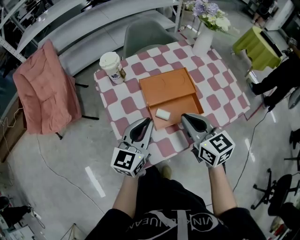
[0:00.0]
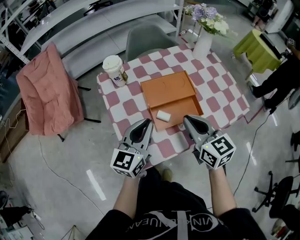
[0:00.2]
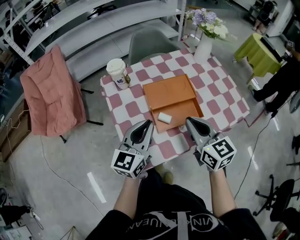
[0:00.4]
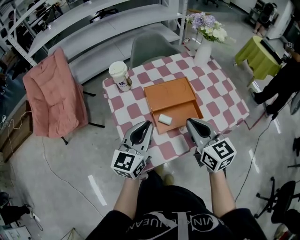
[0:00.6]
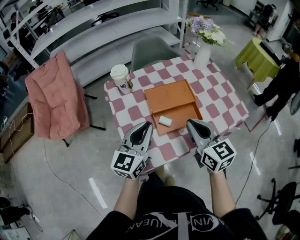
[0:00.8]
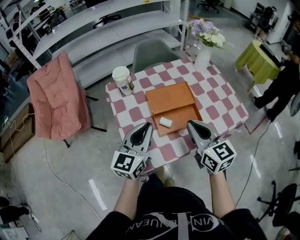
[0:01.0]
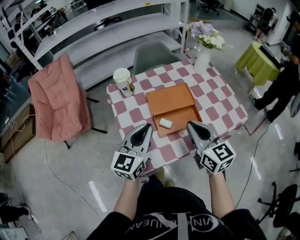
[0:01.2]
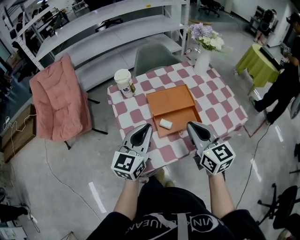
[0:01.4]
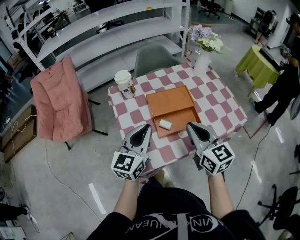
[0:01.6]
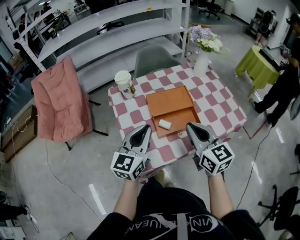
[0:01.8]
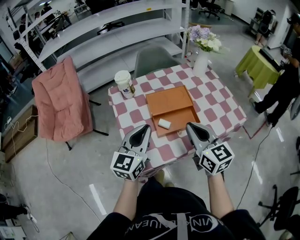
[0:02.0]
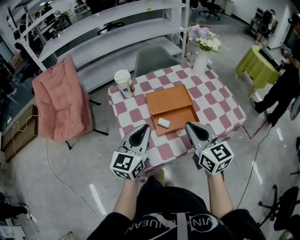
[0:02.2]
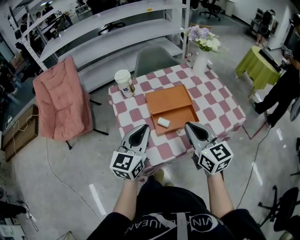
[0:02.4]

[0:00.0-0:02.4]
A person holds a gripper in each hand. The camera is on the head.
0:00.0 to 0:01.2: Both grippers move upward, some 5 cm.
0:01.2 to 0:02.4: The grippers move only a little.

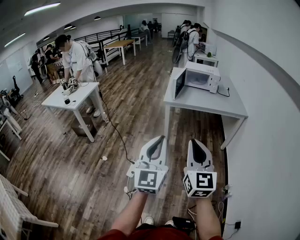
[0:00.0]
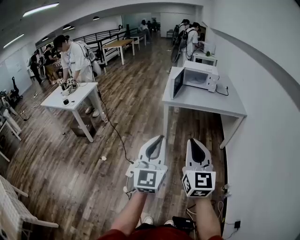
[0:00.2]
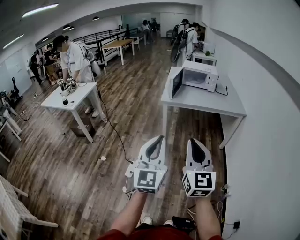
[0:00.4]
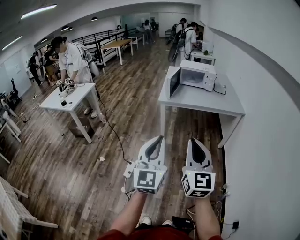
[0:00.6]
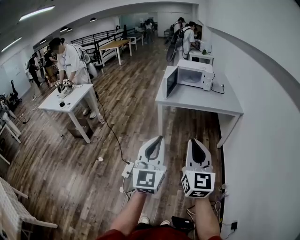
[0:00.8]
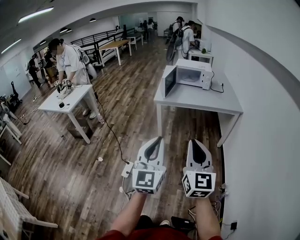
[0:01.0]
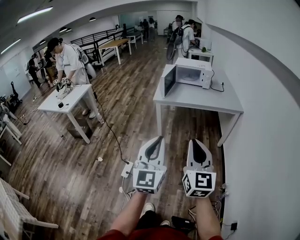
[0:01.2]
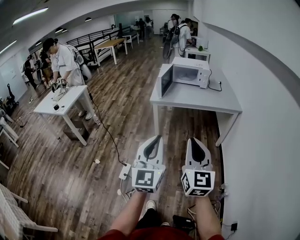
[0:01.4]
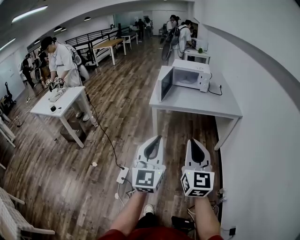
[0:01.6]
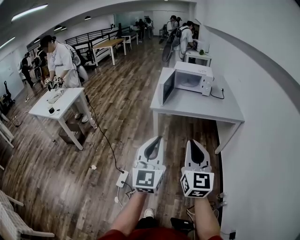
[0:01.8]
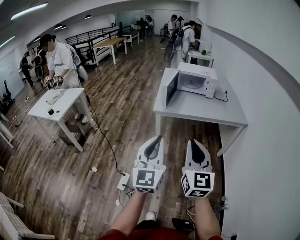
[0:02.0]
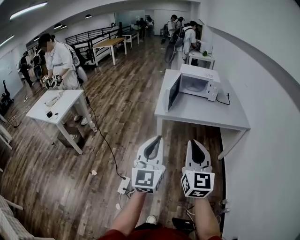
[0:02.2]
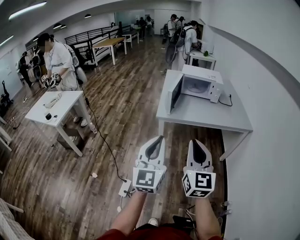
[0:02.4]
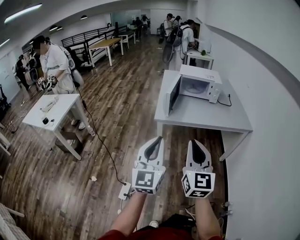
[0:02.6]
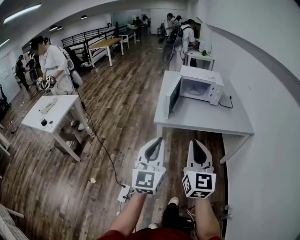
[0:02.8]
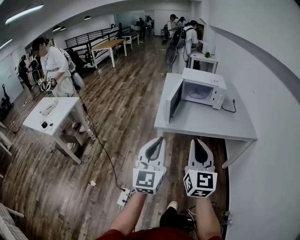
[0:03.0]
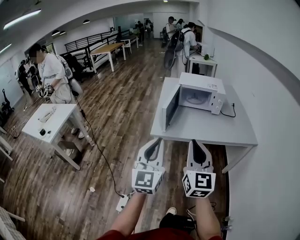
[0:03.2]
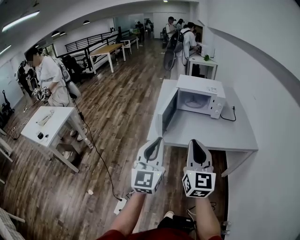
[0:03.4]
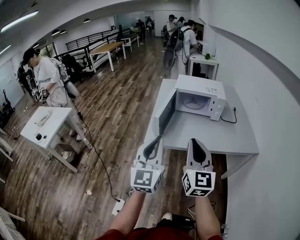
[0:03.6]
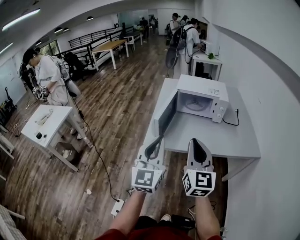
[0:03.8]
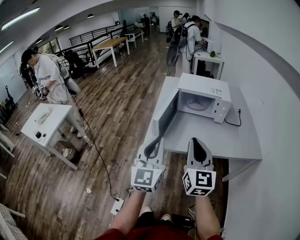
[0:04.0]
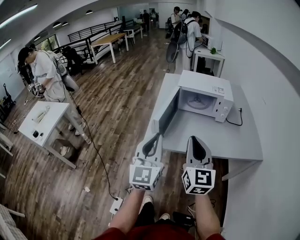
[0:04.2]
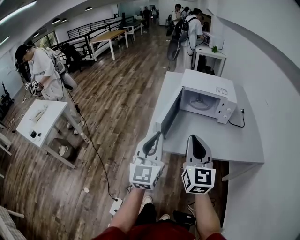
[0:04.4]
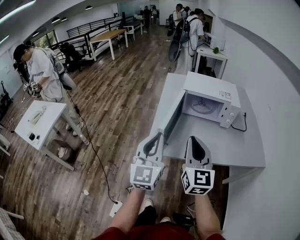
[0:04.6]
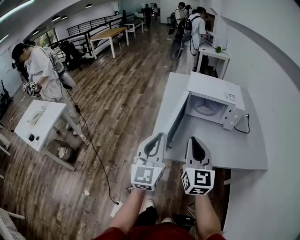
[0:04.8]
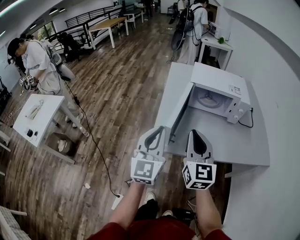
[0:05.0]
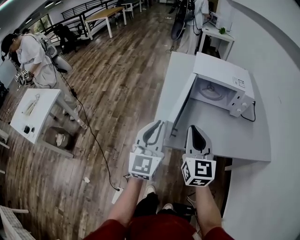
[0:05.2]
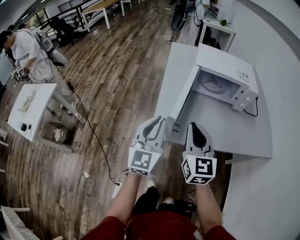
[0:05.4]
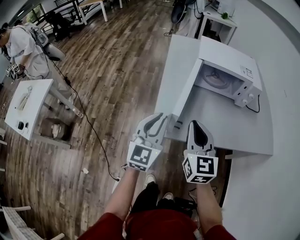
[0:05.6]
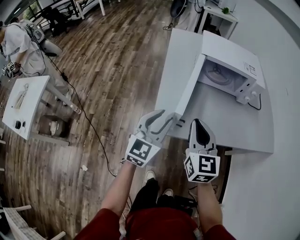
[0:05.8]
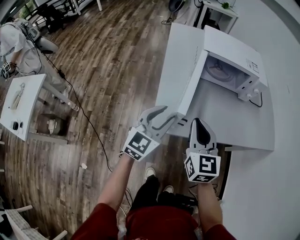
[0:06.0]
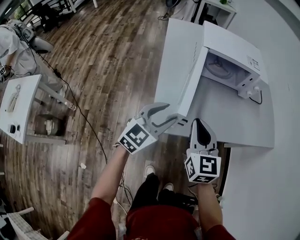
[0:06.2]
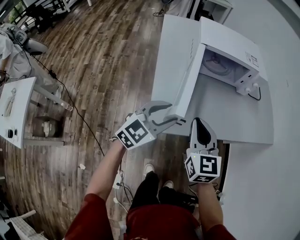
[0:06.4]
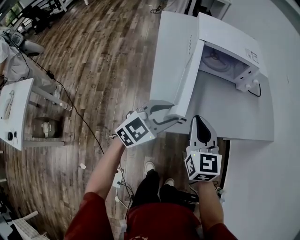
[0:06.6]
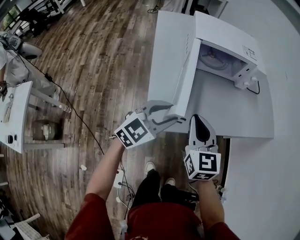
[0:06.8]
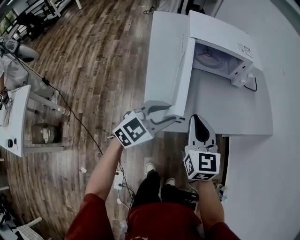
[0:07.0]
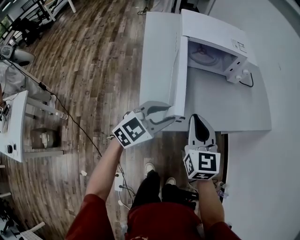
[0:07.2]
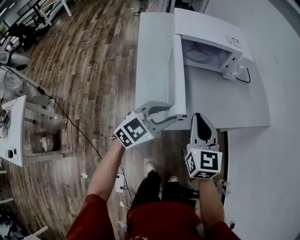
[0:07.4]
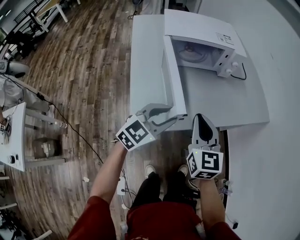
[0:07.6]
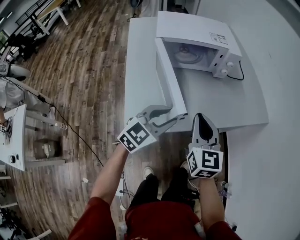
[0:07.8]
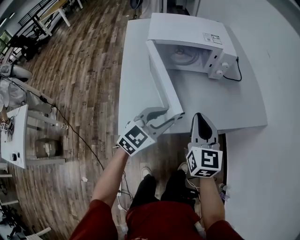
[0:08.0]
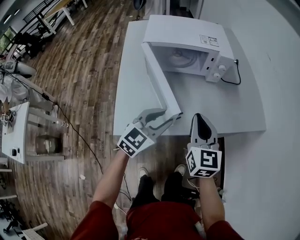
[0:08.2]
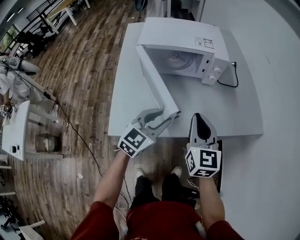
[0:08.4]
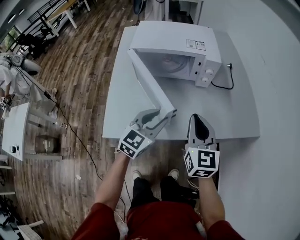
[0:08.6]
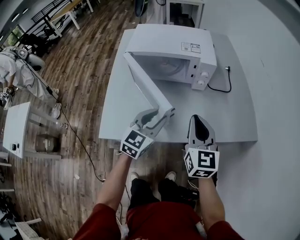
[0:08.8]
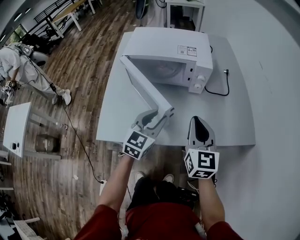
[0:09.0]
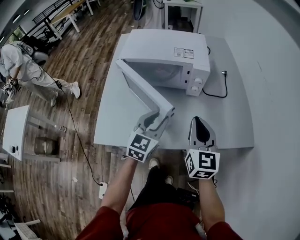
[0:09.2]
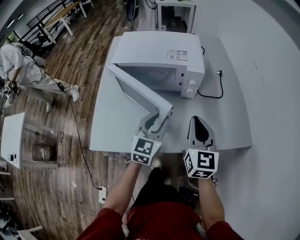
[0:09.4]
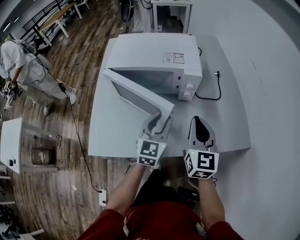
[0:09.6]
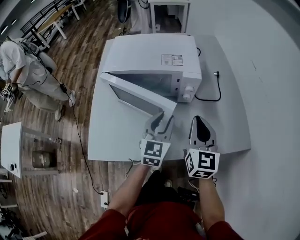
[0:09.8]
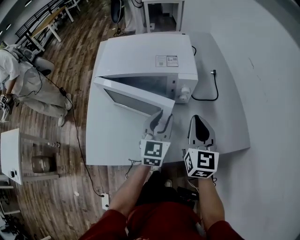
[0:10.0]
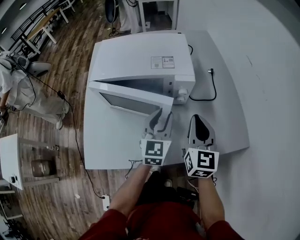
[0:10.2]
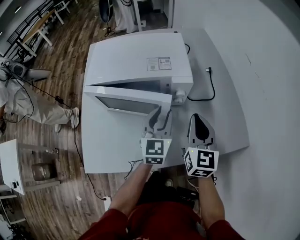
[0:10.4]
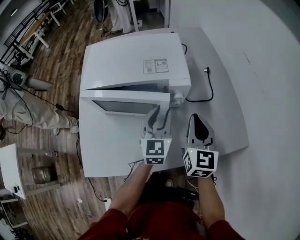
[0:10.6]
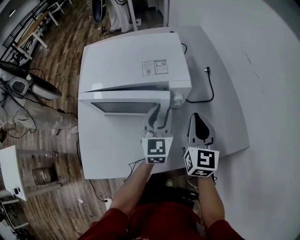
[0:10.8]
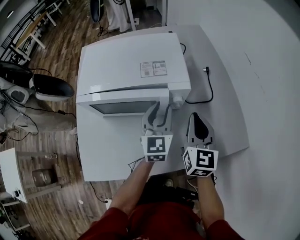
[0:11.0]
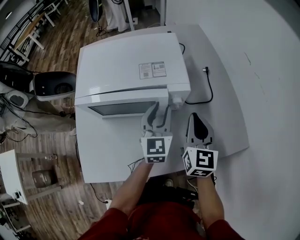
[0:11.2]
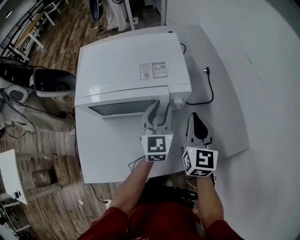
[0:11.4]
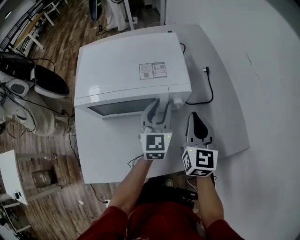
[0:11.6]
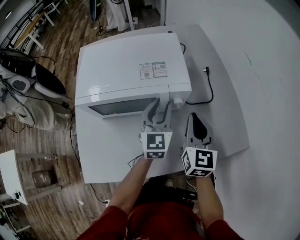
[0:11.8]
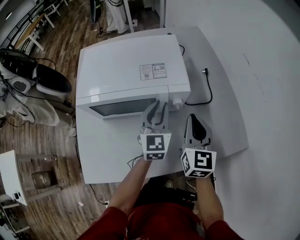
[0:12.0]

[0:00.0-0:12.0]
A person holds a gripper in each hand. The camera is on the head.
0:00.0 to 0:01.6: Both grippers move forward and to the right, roughly 15 cm.
0:01.6 to 0:03.0: Both grippers move forward, approximately 30 cm.
0:03.0 to 0:04.4: Both grippers travel together forward, roughly 30 cm.
0:04.4 to 0:06.0: The right gripper heads downward, forward and to the left, covering roughly 20 cm. Meanwhile the left gripper goes approximately 25 cm downward and forward, turns by about 30 degrees, and opens its fingers.
0:06.0 to 0:07.6: Both grippers move to the right, about 10 cm. The left gripper changes its angle by about 30 degrees.
0:07.6 to 0:09.0: Both grippers travel together to the right and forward, roughly 20 cm. The left gripper turns by roughly 30 degrees.
0:09.0 to 0:10.4: Both grippers move forward and to the right, approximately 15 cm.
0:10.4 to 0:12.0: The left gripper heads forward, covering about 5 cm.

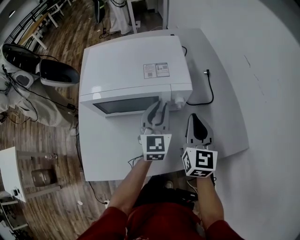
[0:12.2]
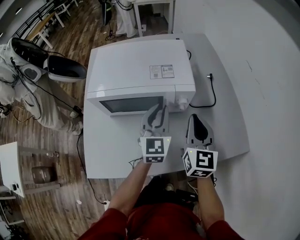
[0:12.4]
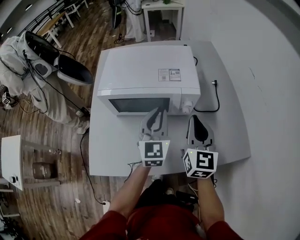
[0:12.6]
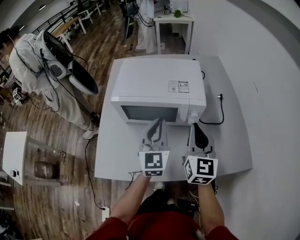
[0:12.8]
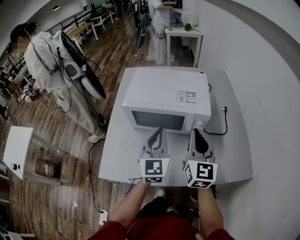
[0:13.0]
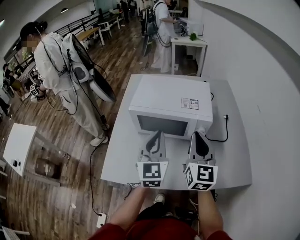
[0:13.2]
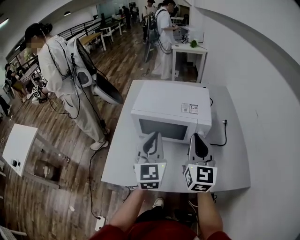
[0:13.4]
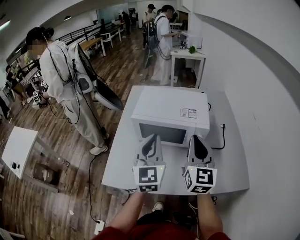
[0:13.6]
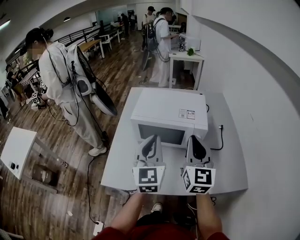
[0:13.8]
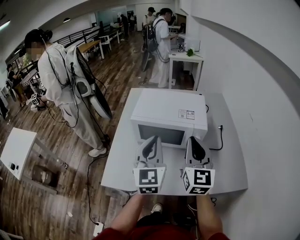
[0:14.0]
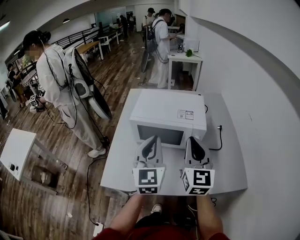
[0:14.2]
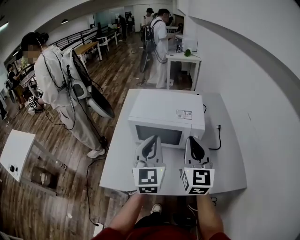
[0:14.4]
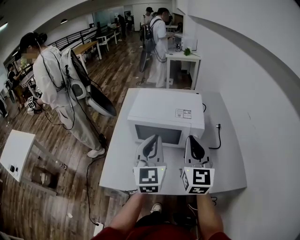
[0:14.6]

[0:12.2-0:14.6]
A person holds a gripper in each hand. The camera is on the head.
0:12.2 to 0:13.4: Both grippers move upward, to the left and backward, about 20 cm. The left gripper turns by roughly 20 degrees, while the right gripper turns by roughly 20 degrees.
0:13.4 to 0:14.6: The grippers move only a little.

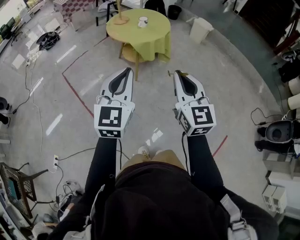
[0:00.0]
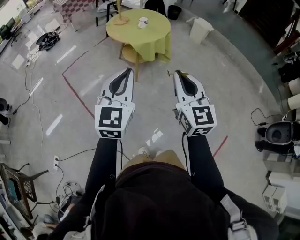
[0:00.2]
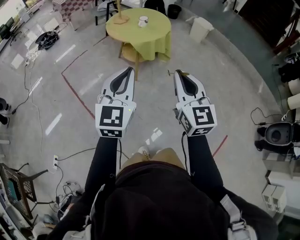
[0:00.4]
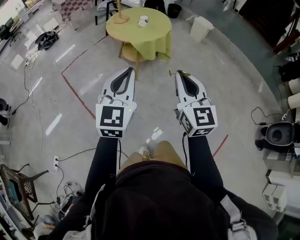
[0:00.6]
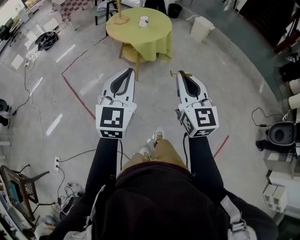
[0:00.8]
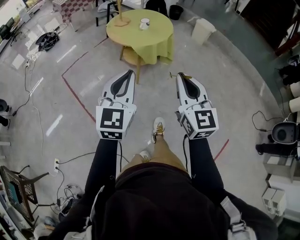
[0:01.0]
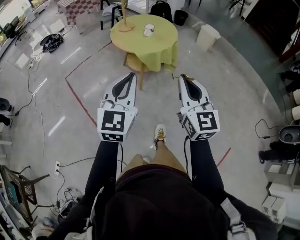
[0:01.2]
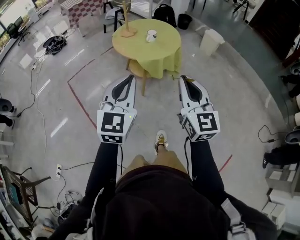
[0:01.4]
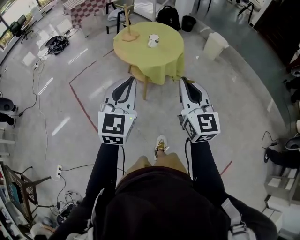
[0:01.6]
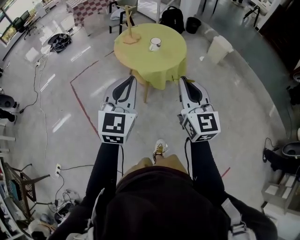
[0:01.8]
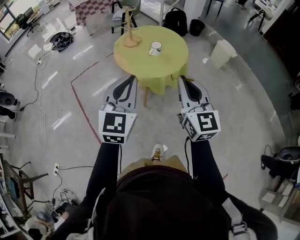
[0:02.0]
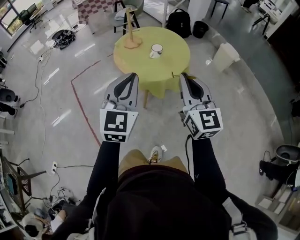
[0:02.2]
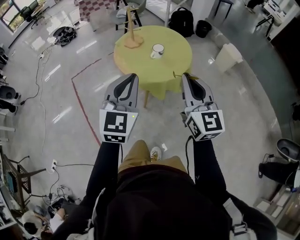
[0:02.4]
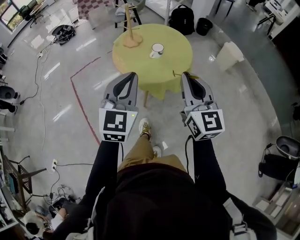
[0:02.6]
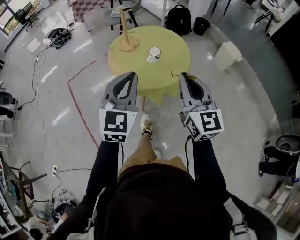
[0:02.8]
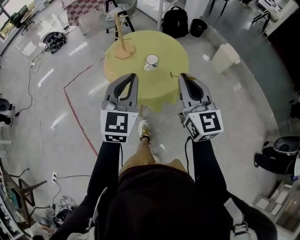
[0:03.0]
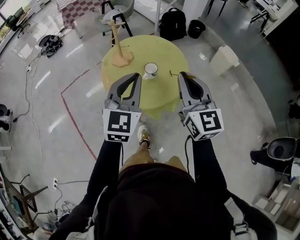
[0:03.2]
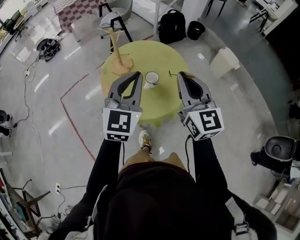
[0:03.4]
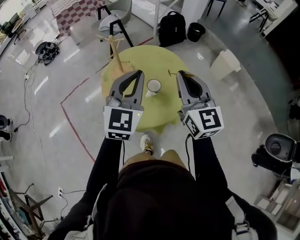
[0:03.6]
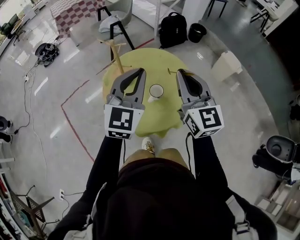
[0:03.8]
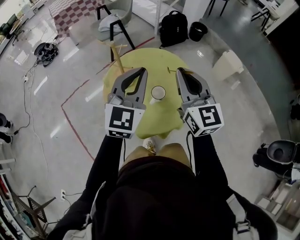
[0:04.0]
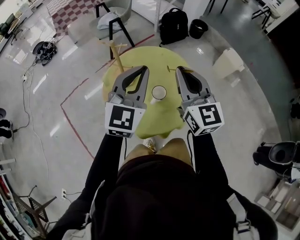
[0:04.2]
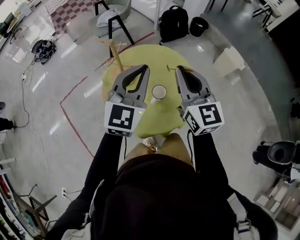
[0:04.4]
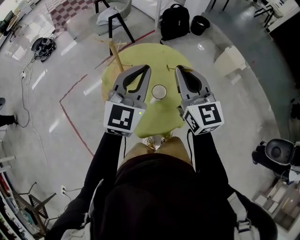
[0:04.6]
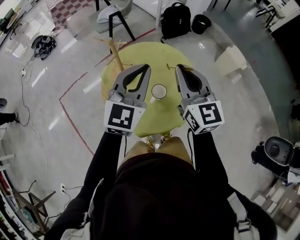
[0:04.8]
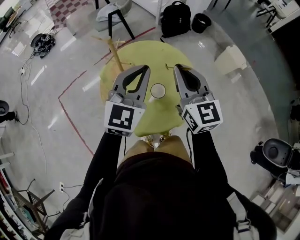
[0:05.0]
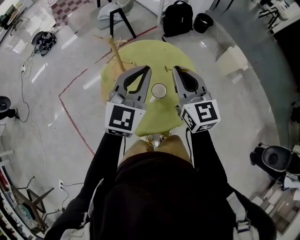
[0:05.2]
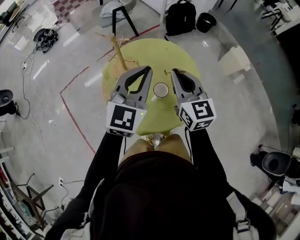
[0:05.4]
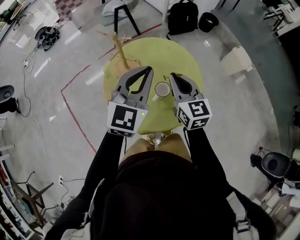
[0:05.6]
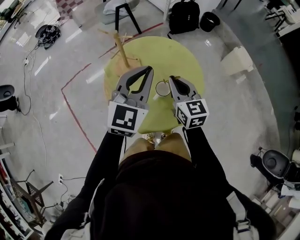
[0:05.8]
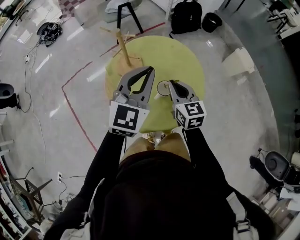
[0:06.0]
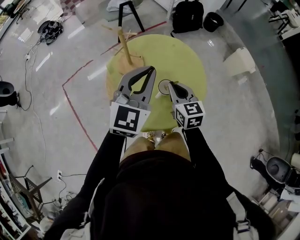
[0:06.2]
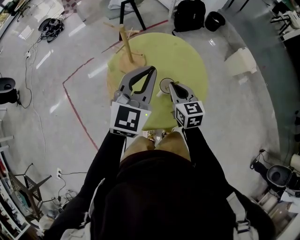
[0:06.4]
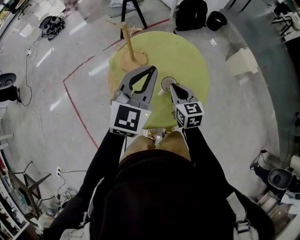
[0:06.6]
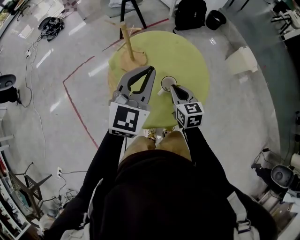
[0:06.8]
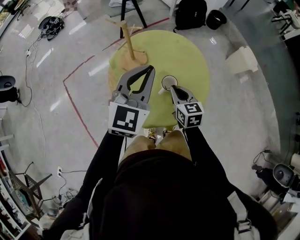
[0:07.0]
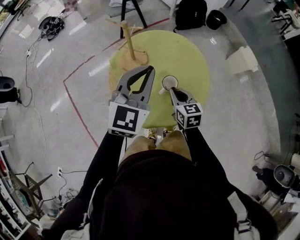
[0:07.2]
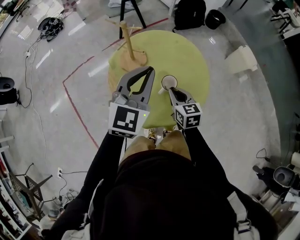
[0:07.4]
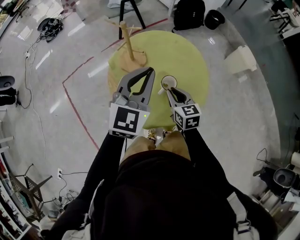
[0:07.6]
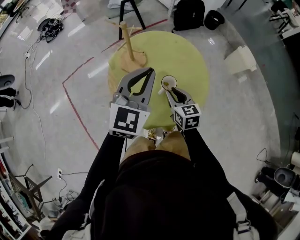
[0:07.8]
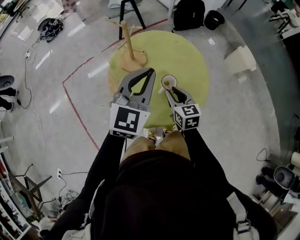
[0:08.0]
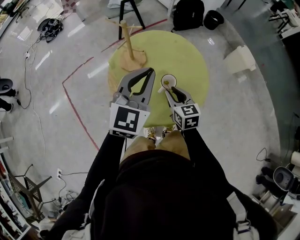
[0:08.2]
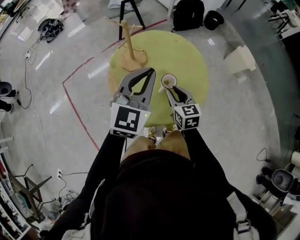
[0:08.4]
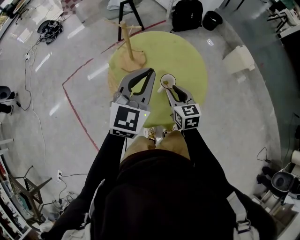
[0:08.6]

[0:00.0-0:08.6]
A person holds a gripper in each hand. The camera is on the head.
0:00.0 to 0:01.4: The grippers both shift forward by some 15 cm.
0:01.4 to 0:02.8: The grippers both shift forward by roughly 30 cm.
0:02.8 to 0:04.4: Both grippers move forward, approximately 30 cm.
0:04.4 to 0:05.8: The right gripper goes some 15 cm downward.
0:05.8 to 0:07.2: The right gripper travels downward by roughly 10 cm.
0:07.2 to 0:08.6: The right gripper opens up.
